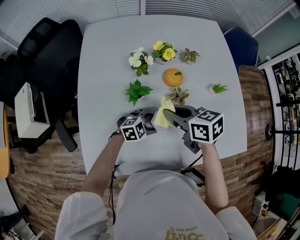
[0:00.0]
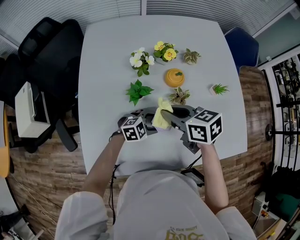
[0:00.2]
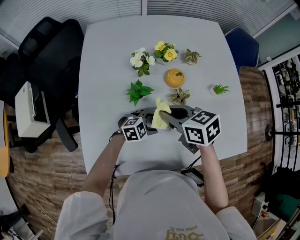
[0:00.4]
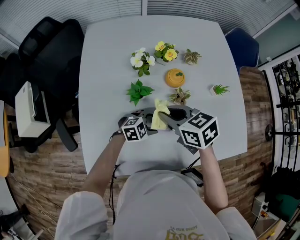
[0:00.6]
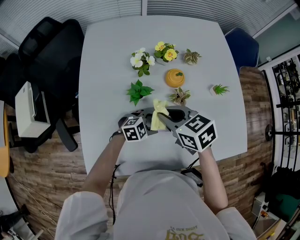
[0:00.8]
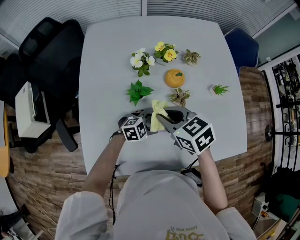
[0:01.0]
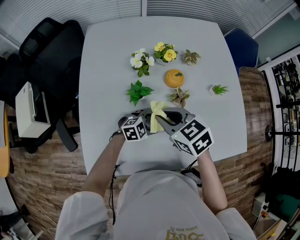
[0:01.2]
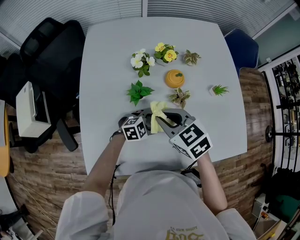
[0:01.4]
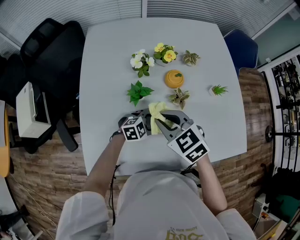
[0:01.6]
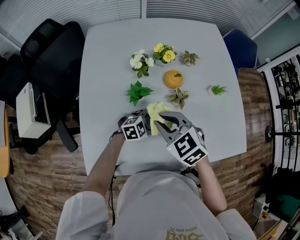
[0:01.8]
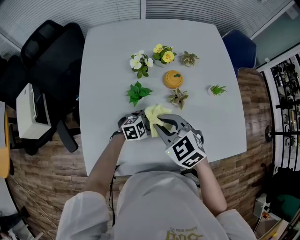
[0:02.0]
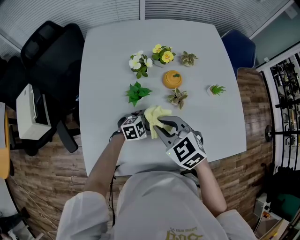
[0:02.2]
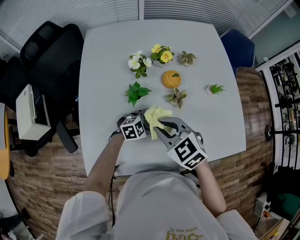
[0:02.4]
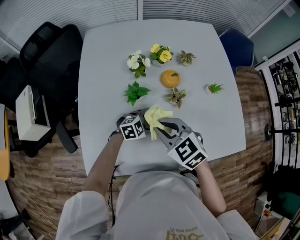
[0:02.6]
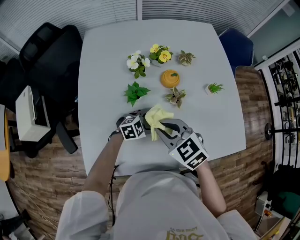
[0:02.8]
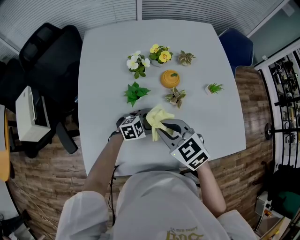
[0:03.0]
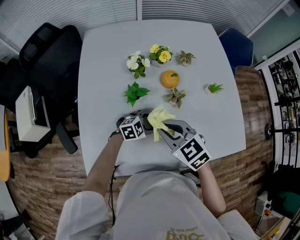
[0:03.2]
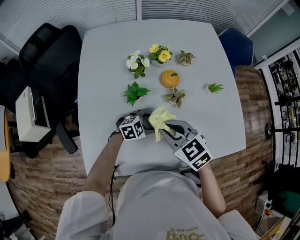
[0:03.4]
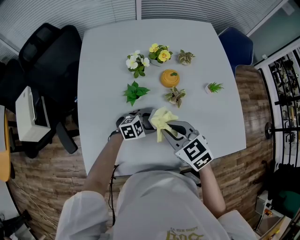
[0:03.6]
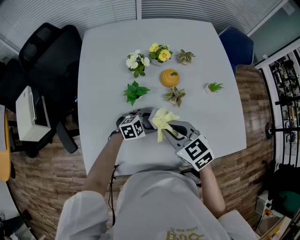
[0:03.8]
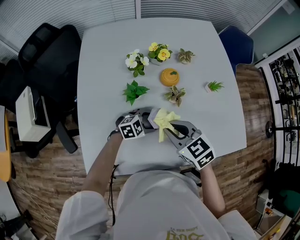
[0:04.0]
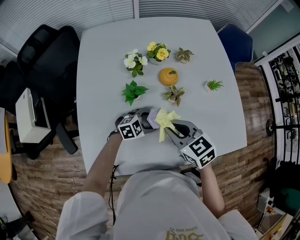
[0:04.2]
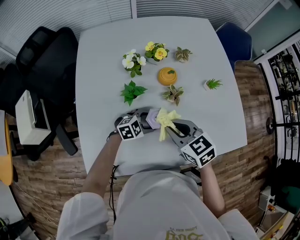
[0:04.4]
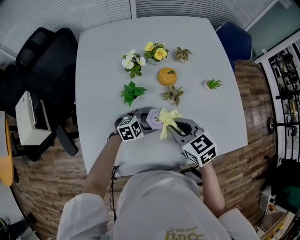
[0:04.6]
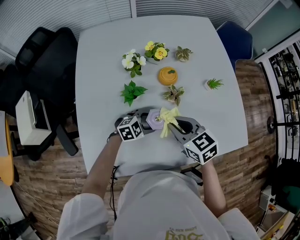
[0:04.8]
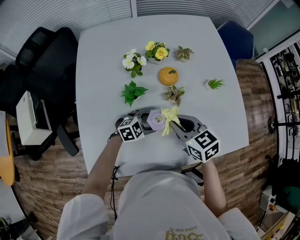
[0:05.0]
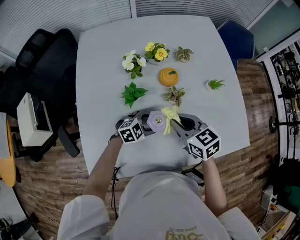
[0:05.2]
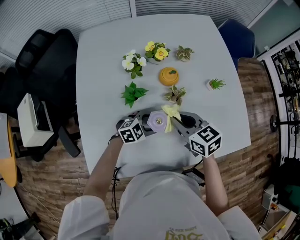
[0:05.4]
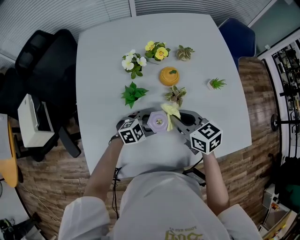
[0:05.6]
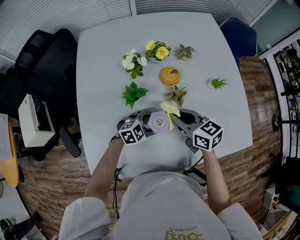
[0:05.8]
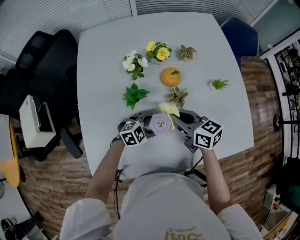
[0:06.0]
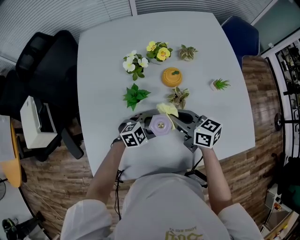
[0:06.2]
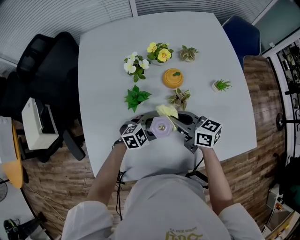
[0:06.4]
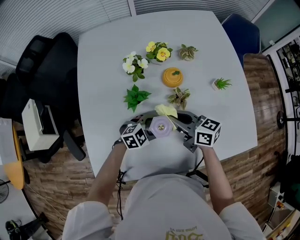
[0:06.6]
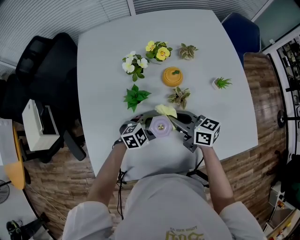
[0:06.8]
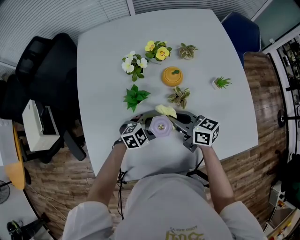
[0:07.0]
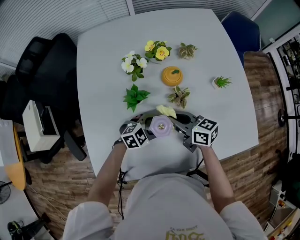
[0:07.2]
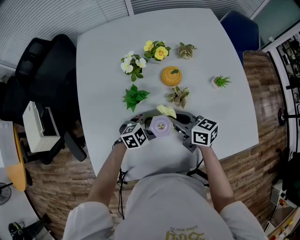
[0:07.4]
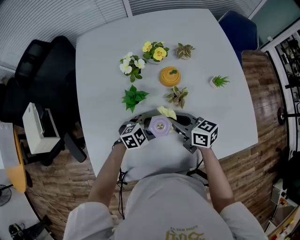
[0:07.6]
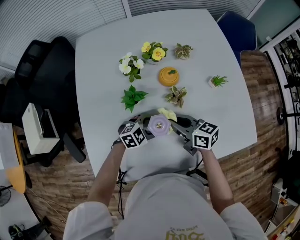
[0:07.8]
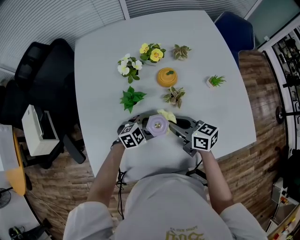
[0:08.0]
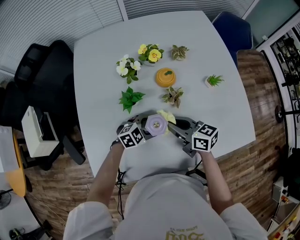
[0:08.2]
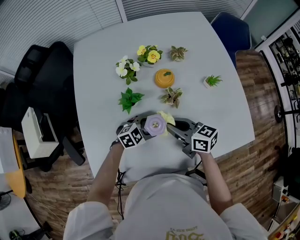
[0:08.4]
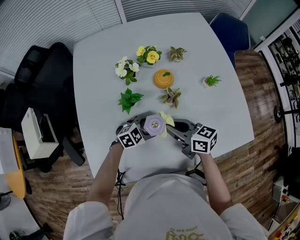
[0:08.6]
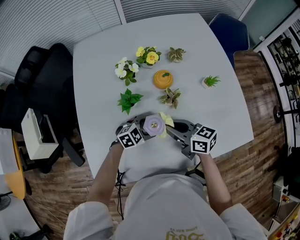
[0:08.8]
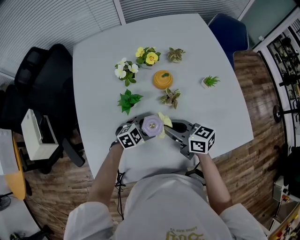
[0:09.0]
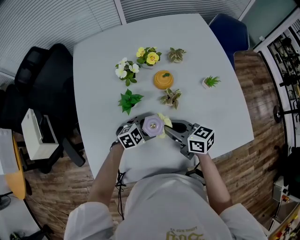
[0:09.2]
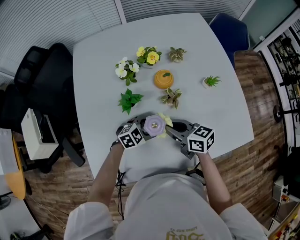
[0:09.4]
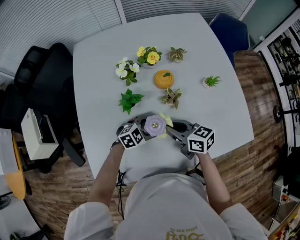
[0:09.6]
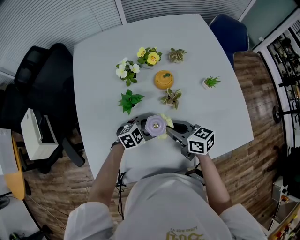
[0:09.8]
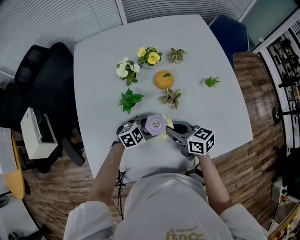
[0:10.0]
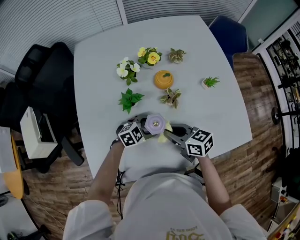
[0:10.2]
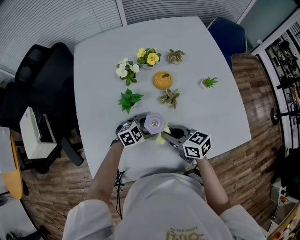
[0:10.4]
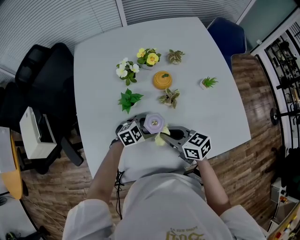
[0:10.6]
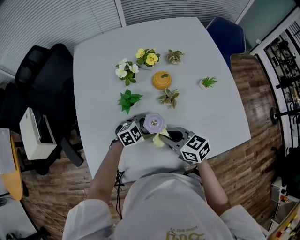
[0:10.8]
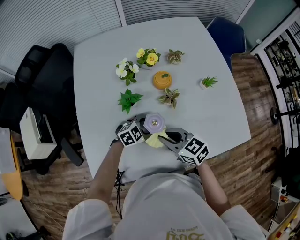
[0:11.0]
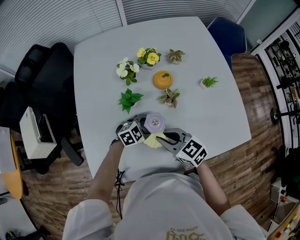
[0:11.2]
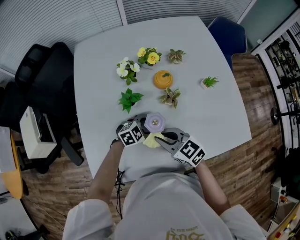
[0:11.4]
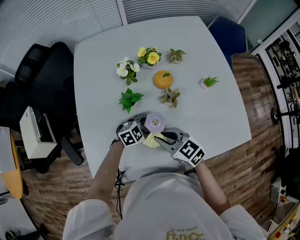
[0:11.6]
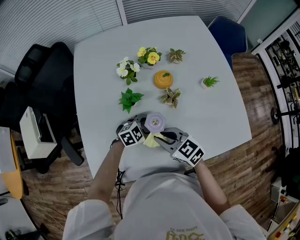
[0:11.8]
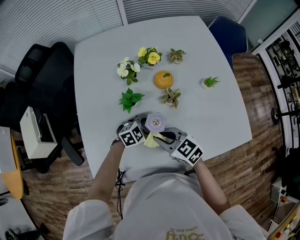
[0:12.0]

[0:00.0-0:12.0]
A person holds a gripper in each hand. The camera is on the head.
0:00.0 to 0:01.6: The right gripper shifts by about 5 cm, and changes its angle by roughly 30 degrees.
0:01.6 to 0:03.0: The grippers move only a little.
0:03.0 to 0:04.4: The right gripper shifts by about 5 cm.
0:04.4 to 0:06.0: The right gripper shifts by approximately 5 cm, and changes its angle by about 30 degrees.
0:06.0 to 0:09.0: The grippers make only small movements.
0:09.0 to 0:10.4: There are only small adjustments of the grippers.
0:10.4 to 0:12.0: The right gripper swivels approximately 20 degrees.

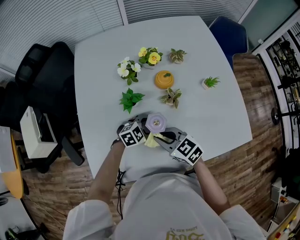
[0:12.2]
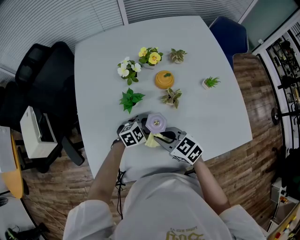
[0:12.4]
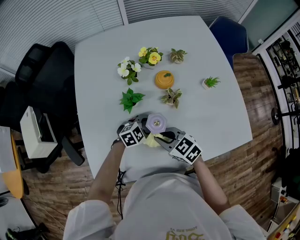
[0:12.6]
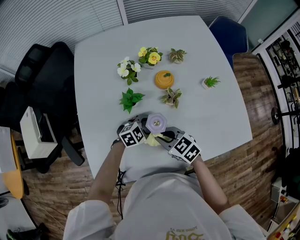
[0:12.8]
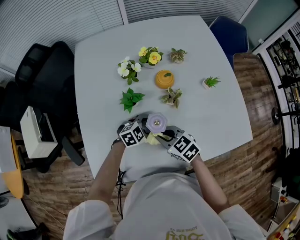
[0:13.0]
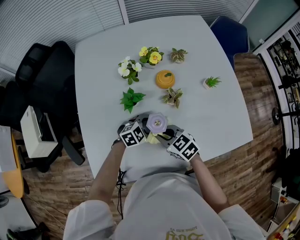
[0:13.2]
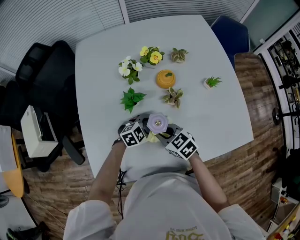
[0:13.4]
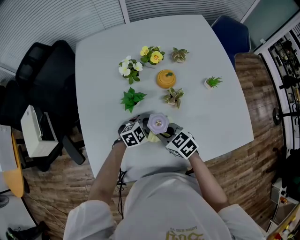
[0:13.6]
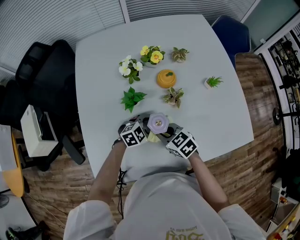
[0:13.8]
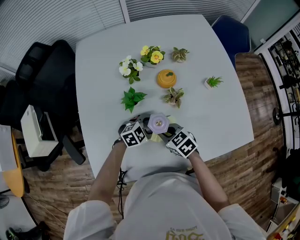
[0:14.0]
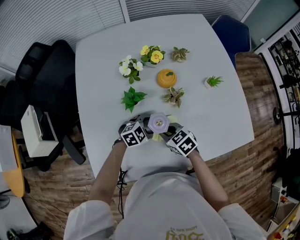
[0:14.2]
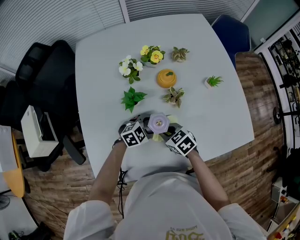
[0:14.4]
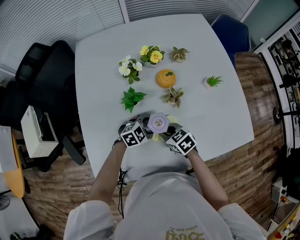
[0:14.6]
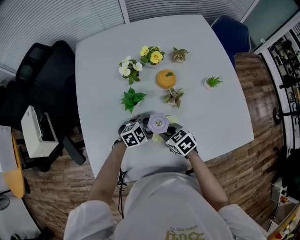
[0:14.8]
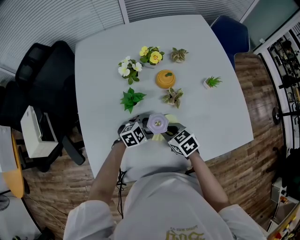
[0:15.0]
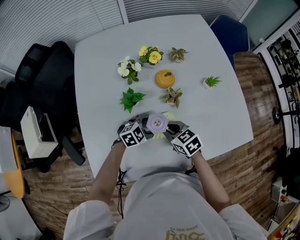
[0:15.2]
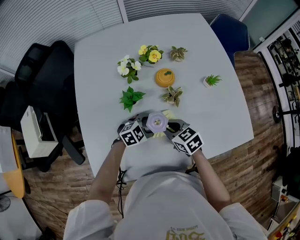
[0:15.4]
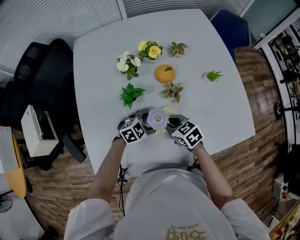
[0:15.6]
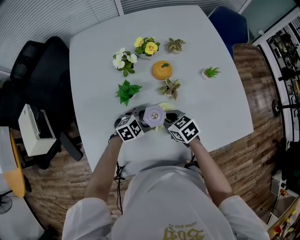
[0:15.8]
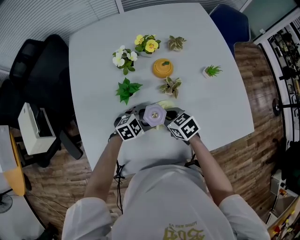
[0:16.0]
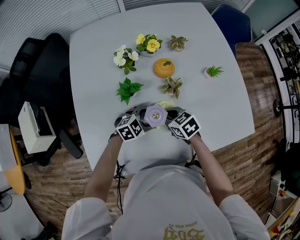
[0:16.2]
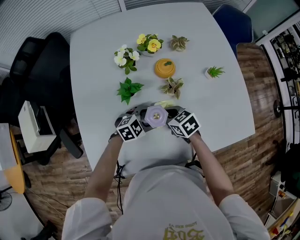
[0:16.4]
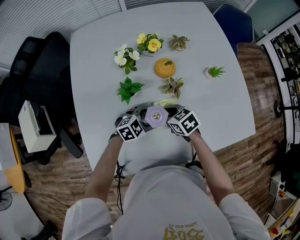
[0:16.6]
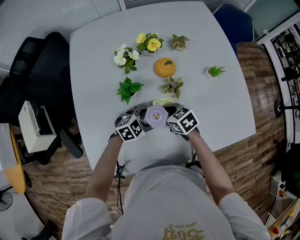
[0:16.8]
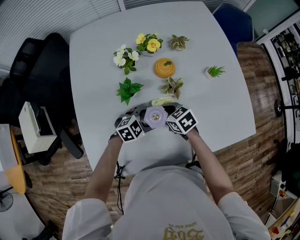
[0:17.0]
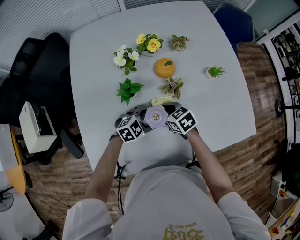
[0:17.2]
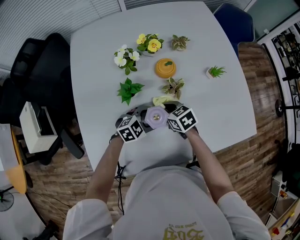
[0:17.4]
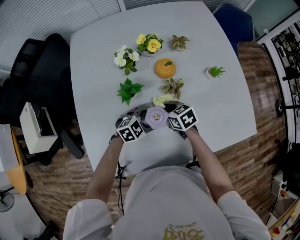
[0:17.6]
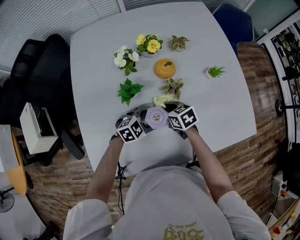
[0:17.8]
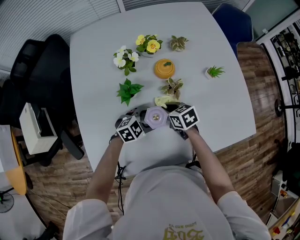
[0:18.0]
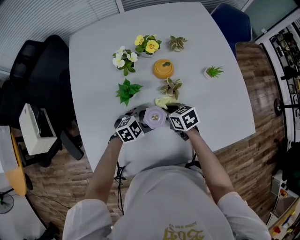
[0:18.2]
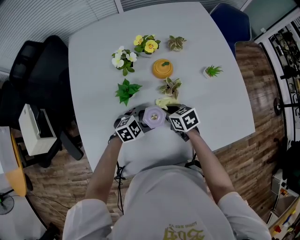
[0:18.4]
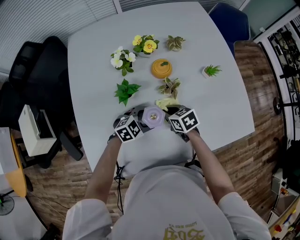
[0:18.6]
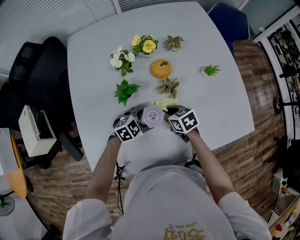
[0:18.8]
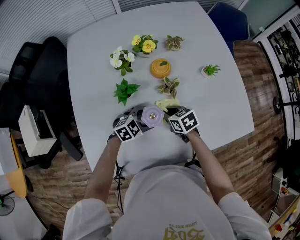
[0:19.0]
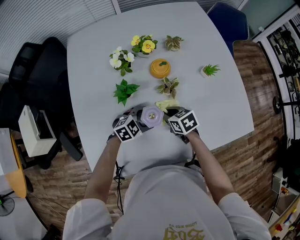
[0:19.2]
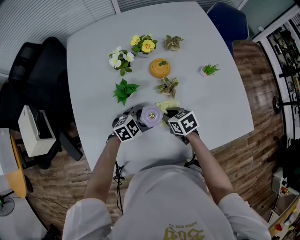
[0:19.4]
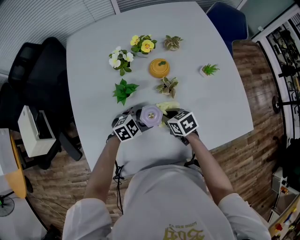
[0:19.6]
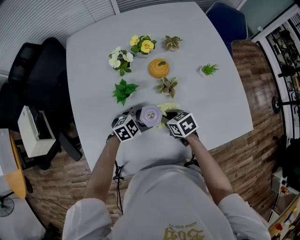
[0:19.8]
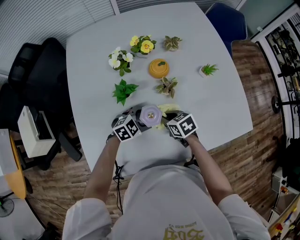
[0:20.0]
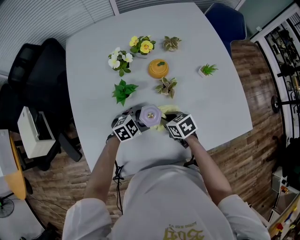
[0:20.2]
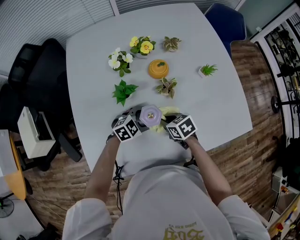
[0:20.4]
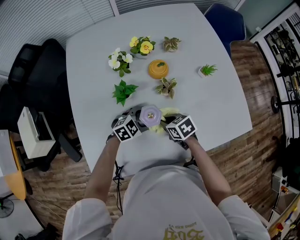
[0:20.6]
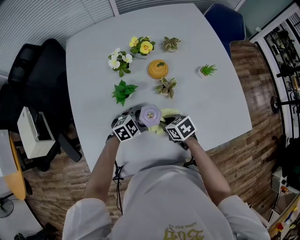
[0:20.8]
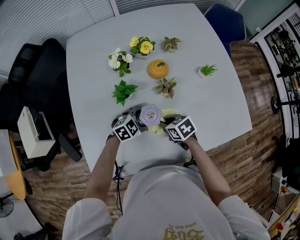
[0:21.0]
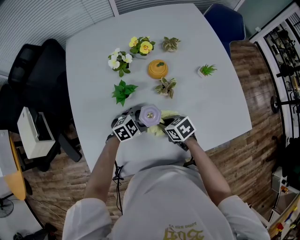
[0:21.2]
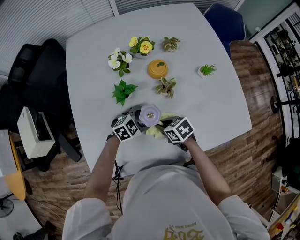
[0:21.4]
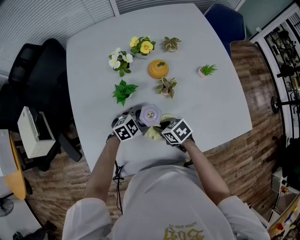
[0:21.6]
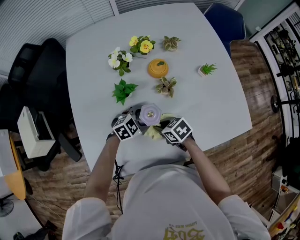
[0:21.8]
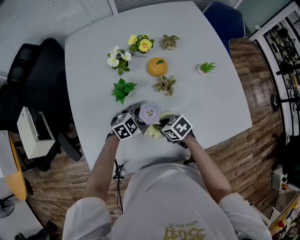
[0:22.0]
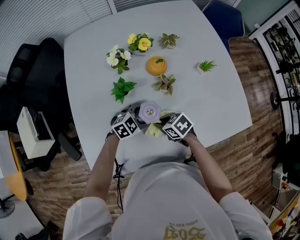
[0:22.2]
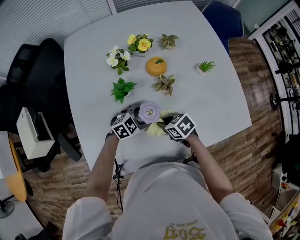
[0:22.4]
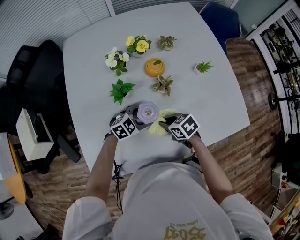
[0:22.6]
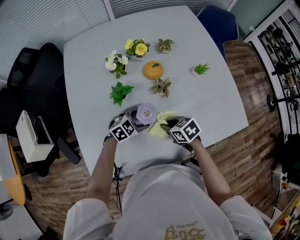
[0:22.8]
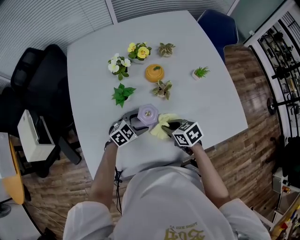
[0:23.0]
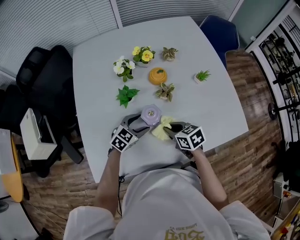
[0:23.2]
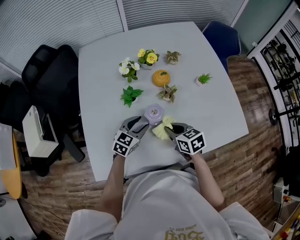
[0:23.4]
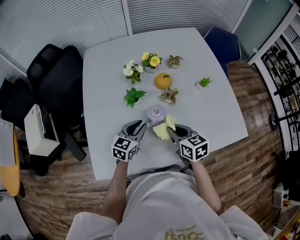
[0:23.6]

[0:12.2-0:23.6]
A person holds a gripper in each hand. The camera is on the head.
0:12.2 to 0:13.6: There are only small adjustments of the grippers.
0:13.6 to 0:15.0: There are only small adjustments of the grippers.
0:15.0 to 0:16.4: There are only small adjustments of the grippers.
0:16.4 to 0:20.8: The grippers move only a little.
0:20.8 to 0:22.2: The grippers make only small movements.
0:22.2 to 0:23.6: Both grippers move upward, about 10 cm. The right gripper rotates approximately 40 degrees, while the left gripper rotates roughly 50 degrees, and closes up.

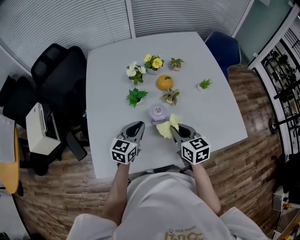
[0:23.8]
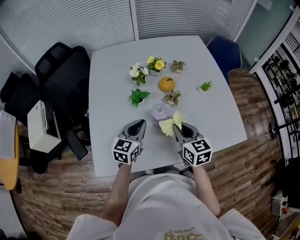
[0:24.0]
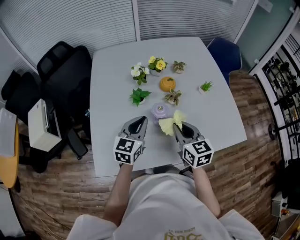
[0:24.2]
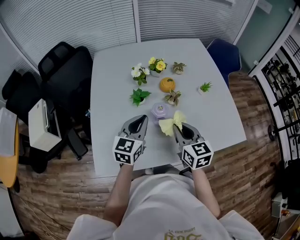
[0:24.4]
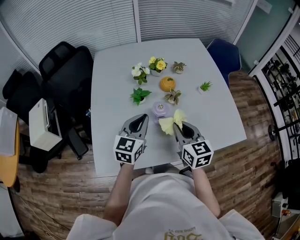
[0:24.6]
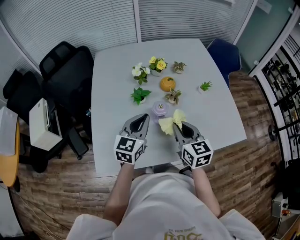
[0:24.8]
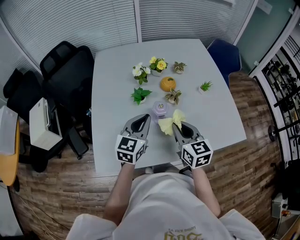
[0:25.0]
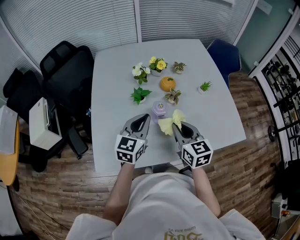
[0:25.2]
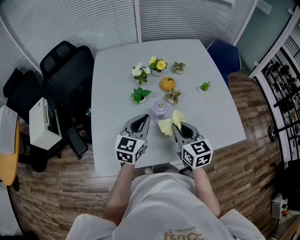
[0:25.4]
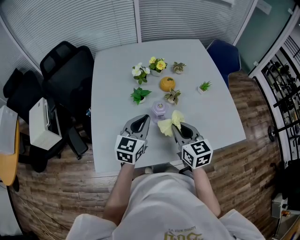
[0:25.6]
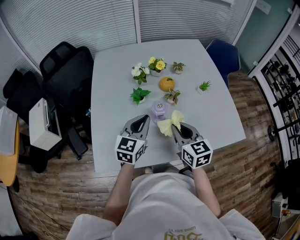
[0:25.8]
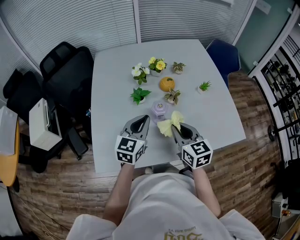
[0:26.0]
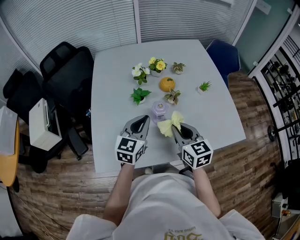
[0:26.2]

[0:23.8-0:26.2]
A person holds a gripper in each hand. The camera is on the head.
0:23.8 to 0:25.0: The left gripper travels upward by some 10 cm, while the right gripper moves upward, about 5 cm.
0:25.0 to 0:26.2: Both grippers stay put.
